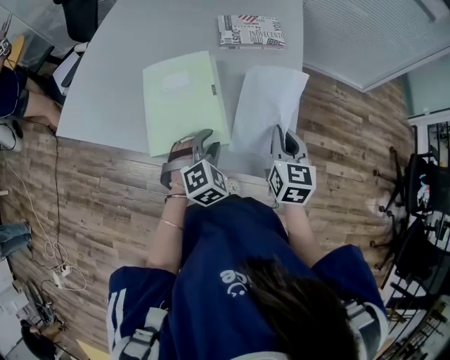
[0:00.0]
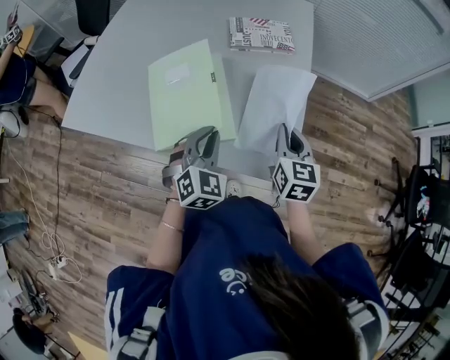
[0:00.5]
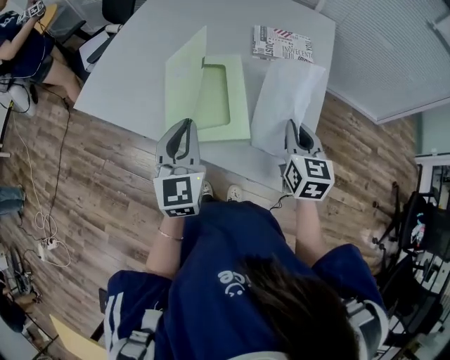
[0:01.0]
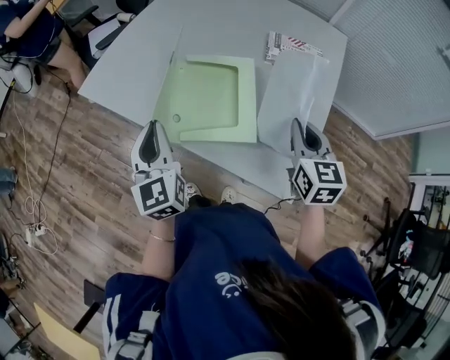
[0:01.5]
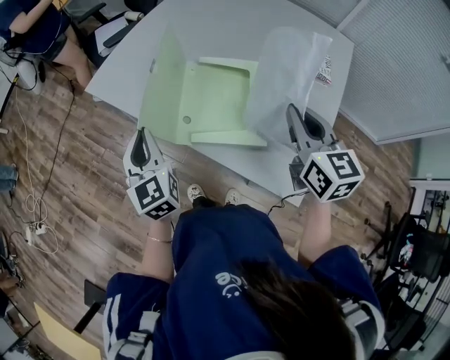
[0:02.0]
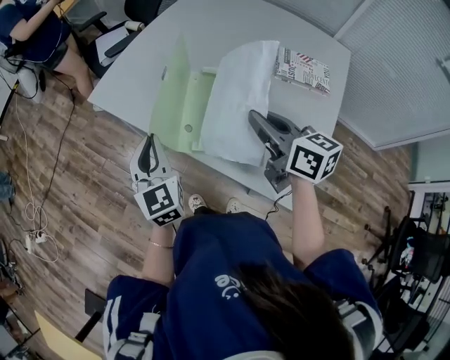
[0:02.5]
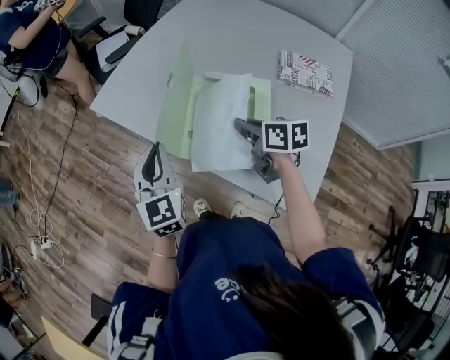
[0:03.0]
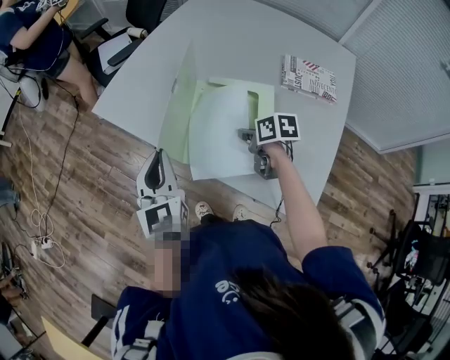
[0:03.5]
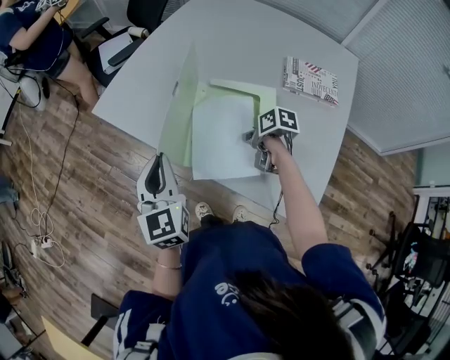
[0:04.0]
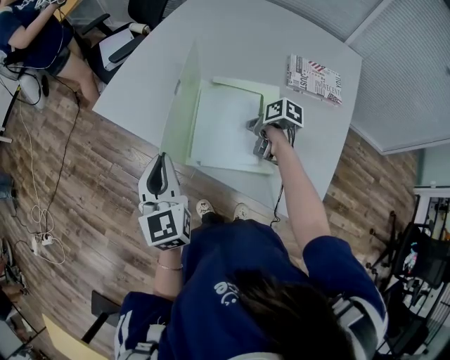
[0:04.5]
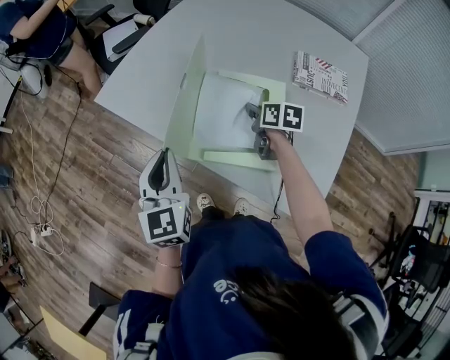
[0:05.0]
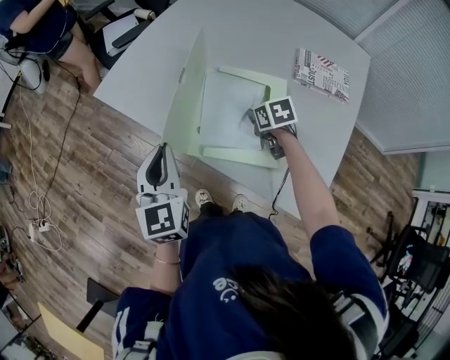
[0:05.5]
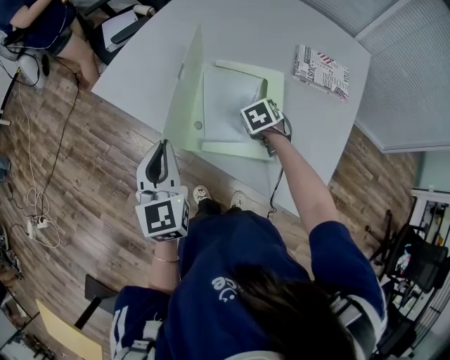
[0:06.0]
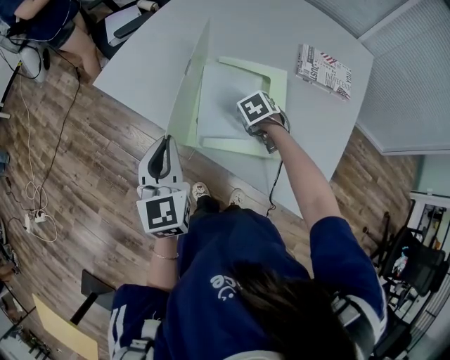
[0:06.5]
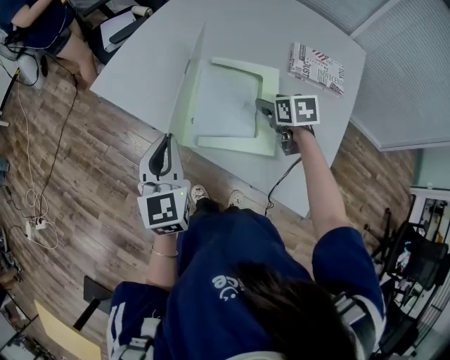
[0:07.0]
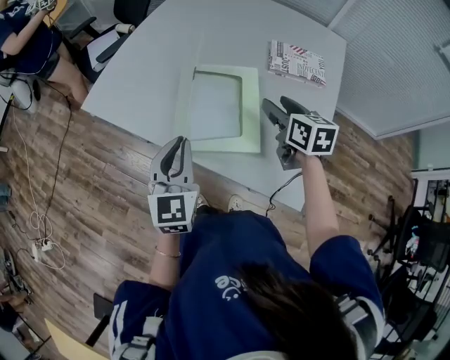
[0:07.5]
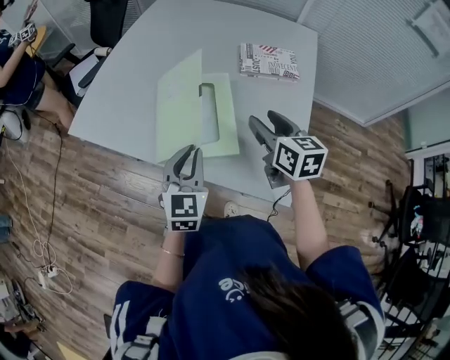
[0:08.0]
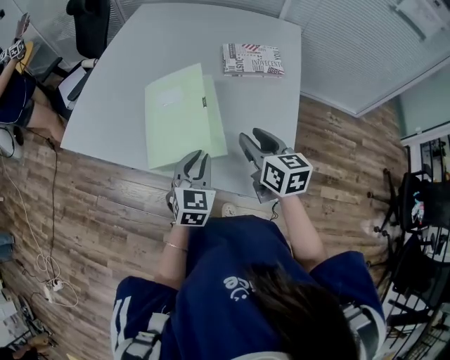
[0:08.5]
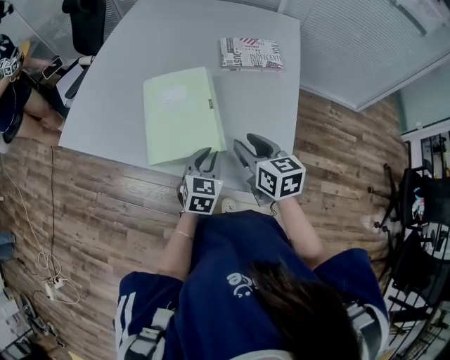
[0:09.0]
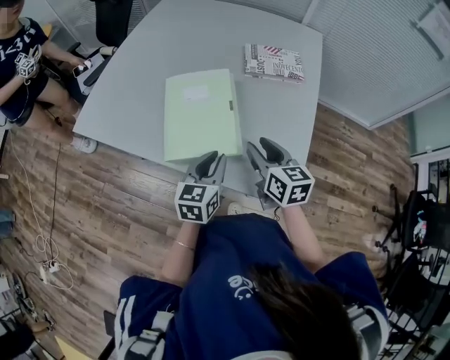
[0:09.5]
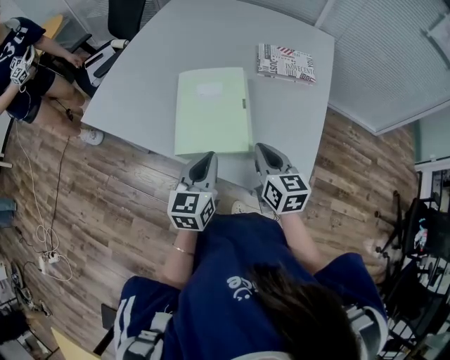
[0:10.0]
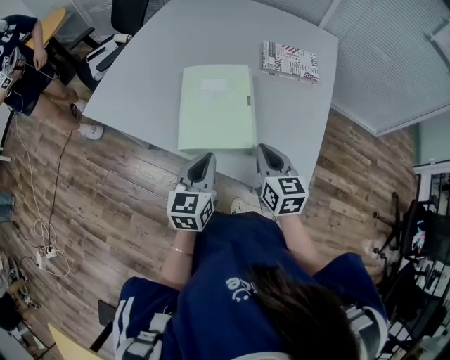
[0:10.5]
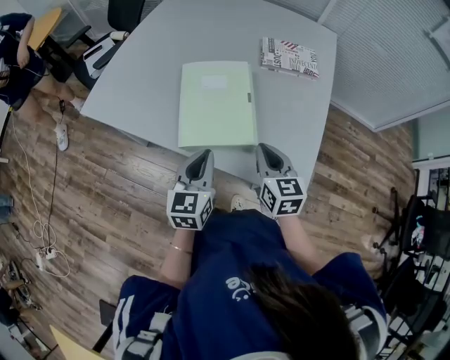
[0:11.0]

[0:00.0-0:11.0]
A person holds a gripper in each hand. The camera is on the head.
0:00.0 to 0:02.0: The right gripper changes place by some 20 cm, and swivels some 30 degrees, while the left gripper changes place by some 35 cm, tilts its fingers about 40 degrees upward, and closes up.
0:02.0 to 0:03.5: The right gripper goes about 25 cm downward and forward, and tips its fingers downward by about 30 degrees.
0:03.5 to 0:05.5: The right gripper changes place by roughly 5 cm, and changes its angle by roughly 30 degrees.
0:05.5 to 0:07.5: The right gripper travels upward, to the right and backward by about 20 cm, rotates about 40 degrees, and opens up, while the left gripper heads to the right, covering roughly 10 cm.
0:07.5 to 0:09.0: The right gripper moves backward, about 10 cm. Meanwhile the left gripper moves to the right and downward, some 25 cm, and rotates roughly 30 degrees.
0:09.0 to 0:11.0: The right gripper heads to the left, covering about 5 cm, and closes up. Meanwhile the left gripper goes about 15 cm to the left and upward, and rotates about 20 degrees.

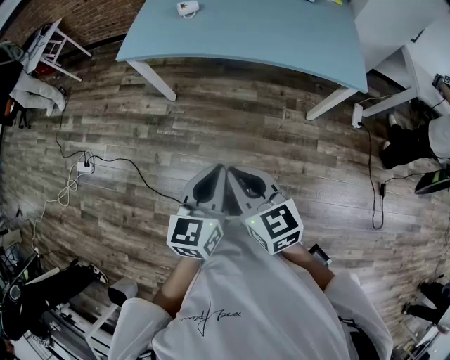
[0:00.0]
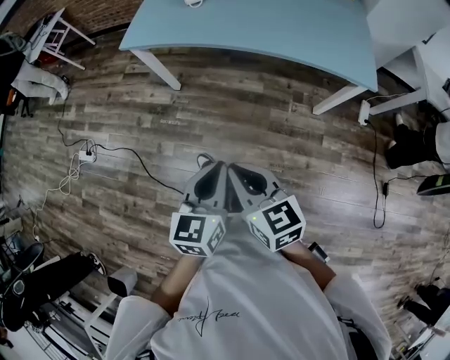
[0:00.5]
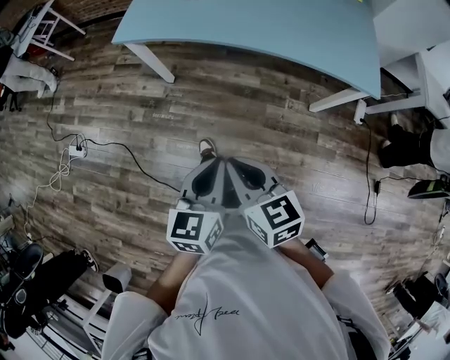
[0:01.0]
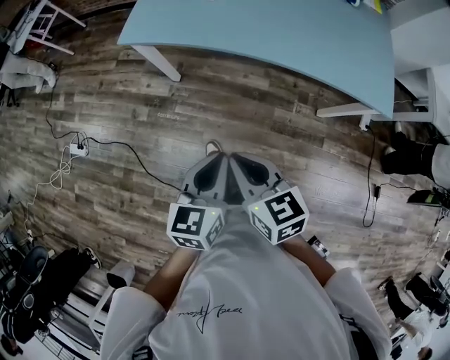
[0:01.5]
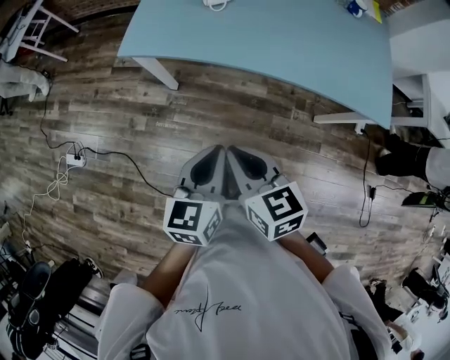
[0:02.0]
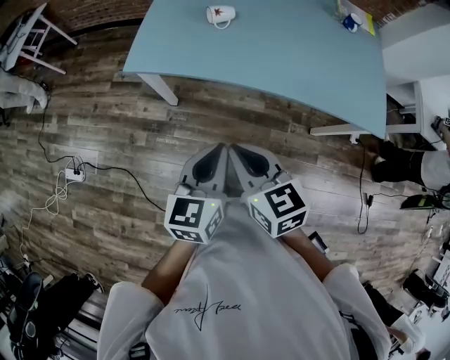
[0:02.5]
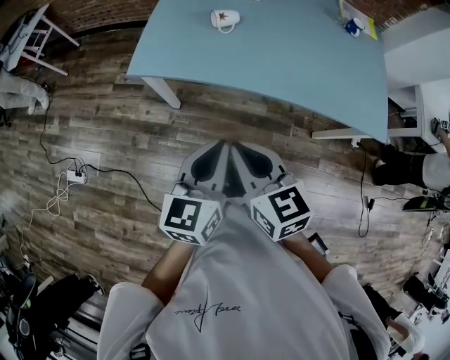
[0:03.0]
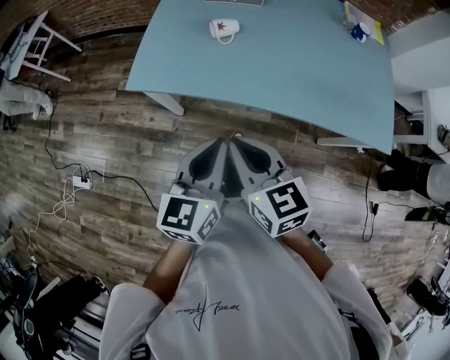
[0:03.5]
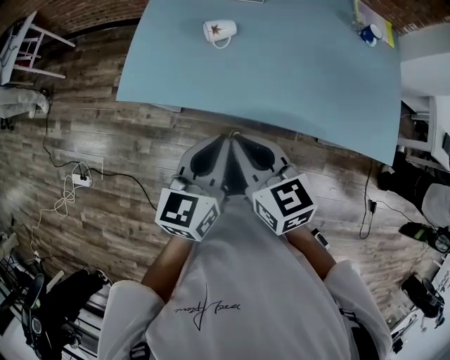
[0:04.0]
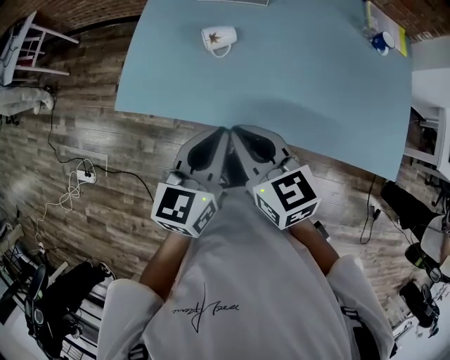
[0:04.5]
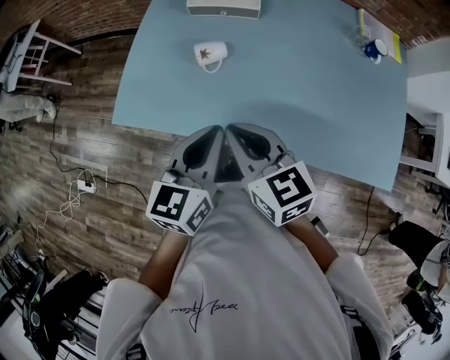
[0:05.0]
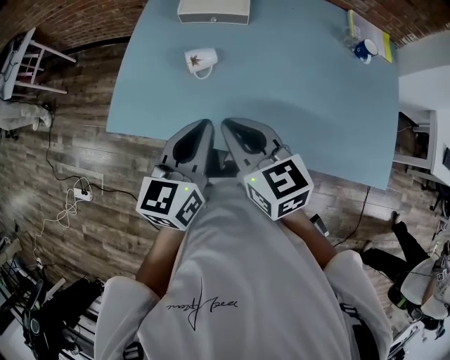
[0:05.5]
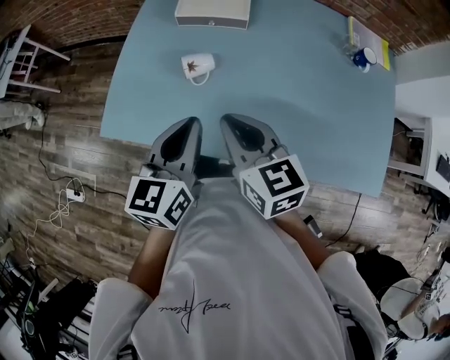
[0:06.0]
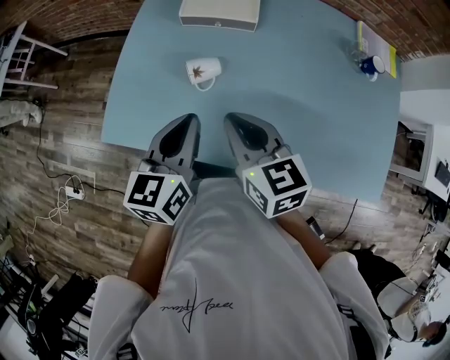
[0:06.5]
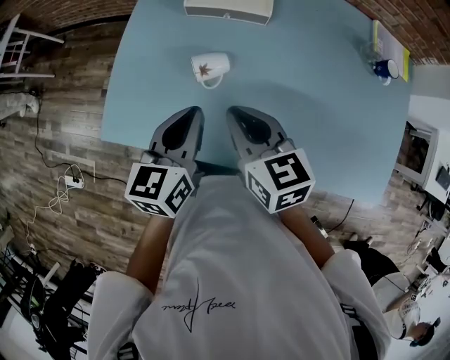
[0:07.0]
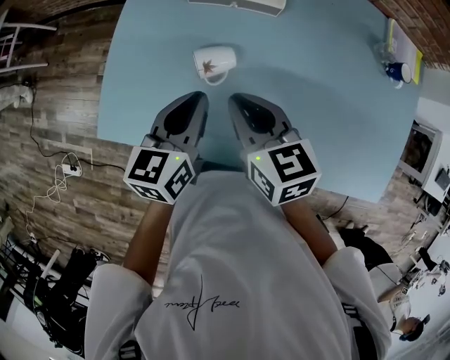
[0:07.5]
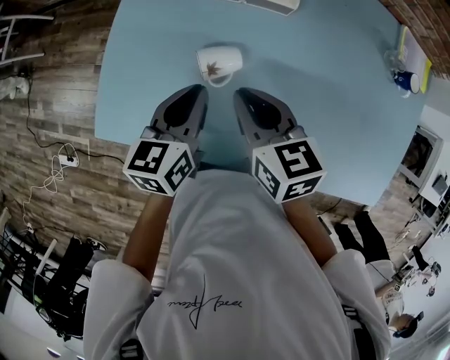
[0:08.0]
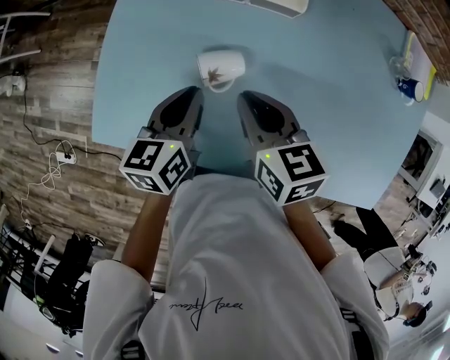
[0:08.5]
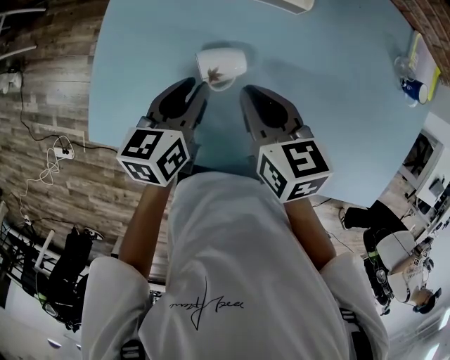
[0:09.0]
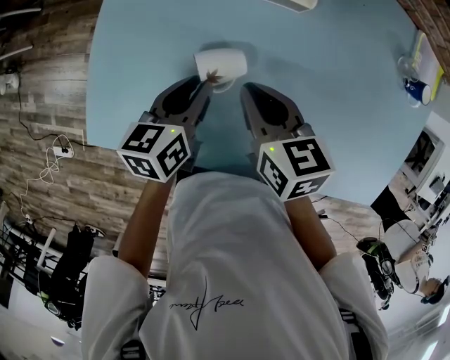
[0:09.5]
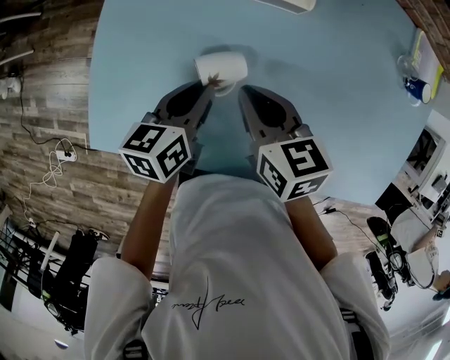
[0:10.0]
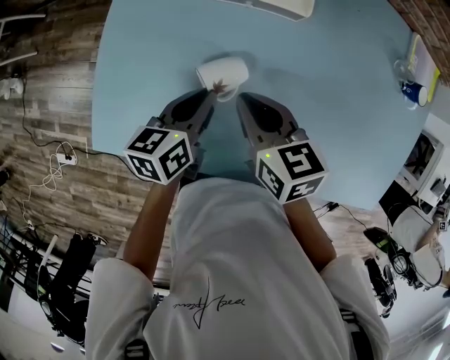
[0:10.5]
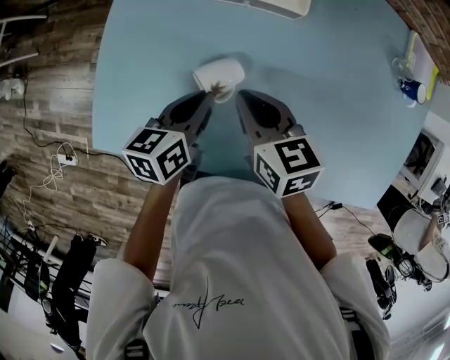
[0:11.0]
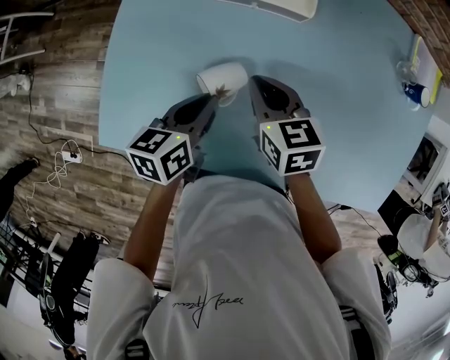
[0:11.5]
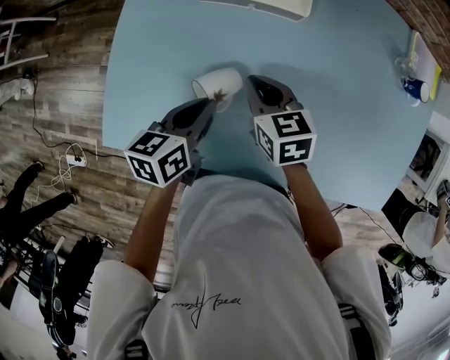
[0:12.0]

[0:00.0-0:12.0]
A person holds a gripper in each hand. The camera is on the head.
0:00.0 to 0:02.0: Both grippers travel together forward, roughly 20 cm.
0:02.0 to 0:04.0: Both grippers travel together forward, roughly 20 cm.
0:04.0 to 0:06.0: The left gripper is displaced forward by some 15 cm, while the right gripper shifts about 15 cm forward and to the right.
0:06.0 to 0:08.0: The two grippers go roughly 15 cm forward and downward.
0:08.0 to 0:10.0: The left gripper moves downward, about 5 cm.
0:10.0 to 0:12.0: The right gripper moves about 5 cm.

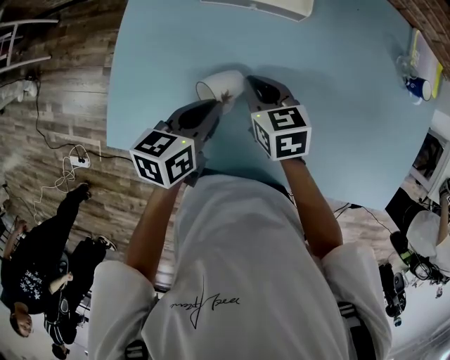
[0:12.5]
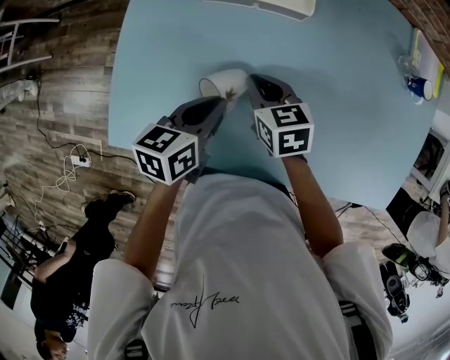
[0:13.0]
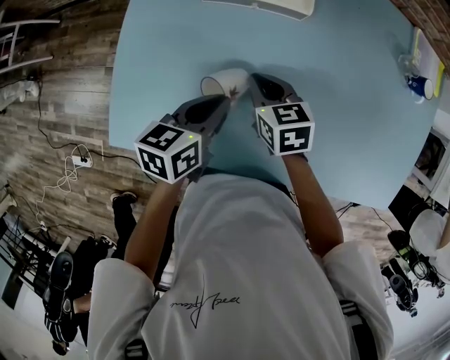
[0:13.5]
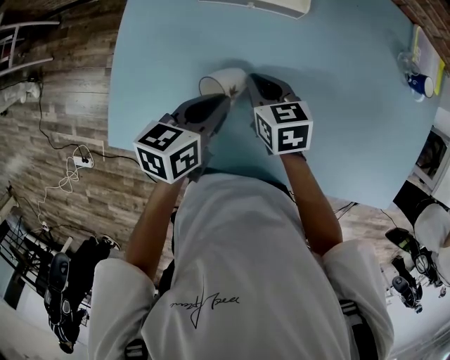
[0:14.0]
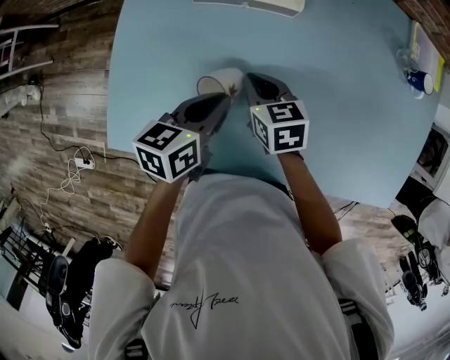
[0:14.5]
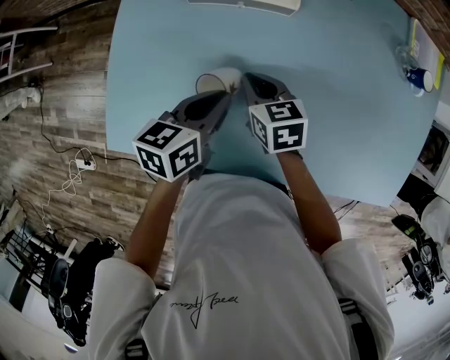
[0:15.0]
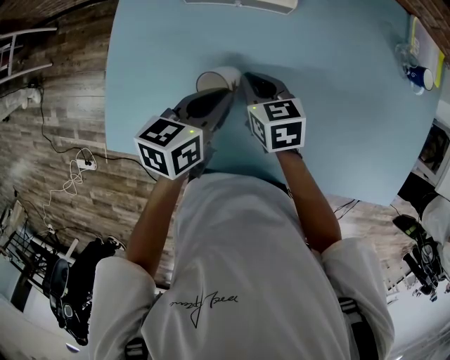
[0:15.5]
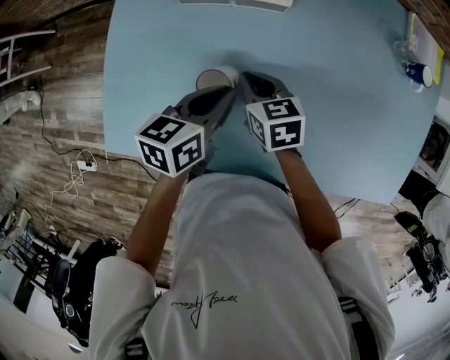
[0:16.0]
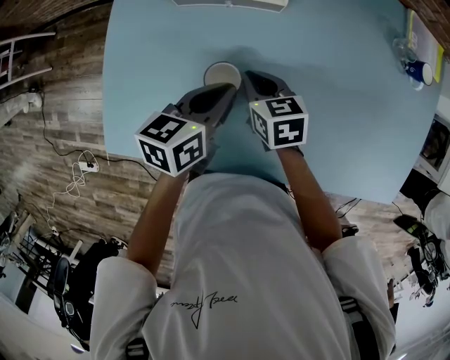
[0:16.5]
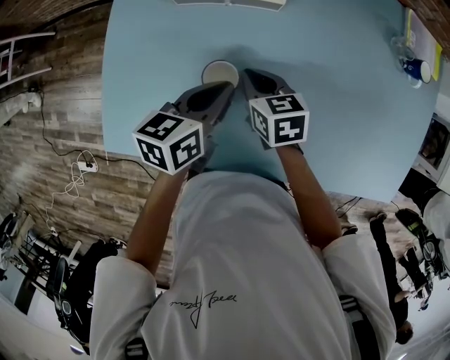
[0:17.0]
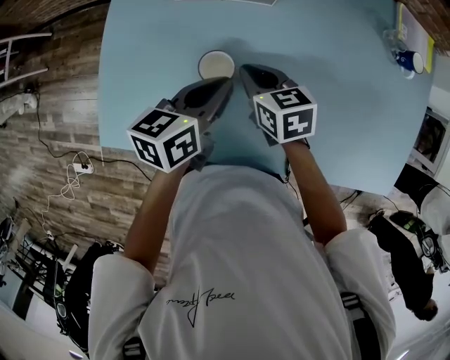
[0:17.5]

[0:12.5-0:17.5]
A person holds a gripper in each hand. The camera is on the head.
0:12.5 to 0:15.0: The grippers make only small movements.
0:15.0 to 0:17.5: The grippers make only small movements.
